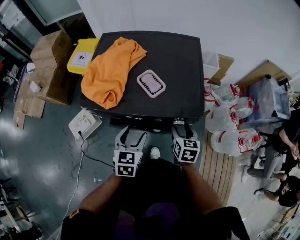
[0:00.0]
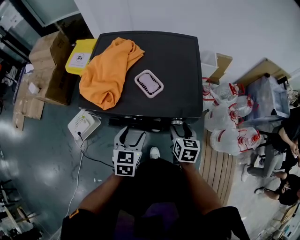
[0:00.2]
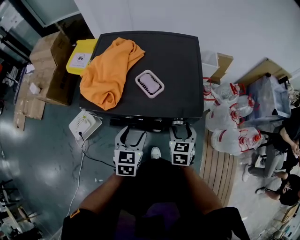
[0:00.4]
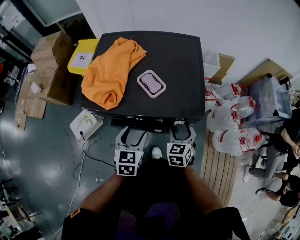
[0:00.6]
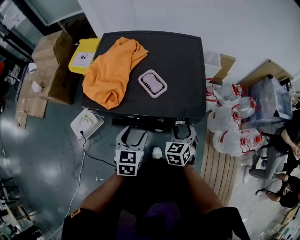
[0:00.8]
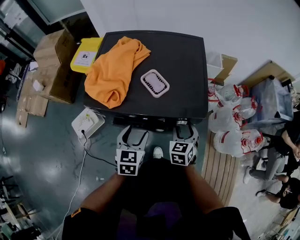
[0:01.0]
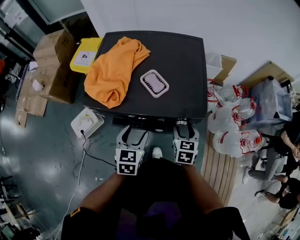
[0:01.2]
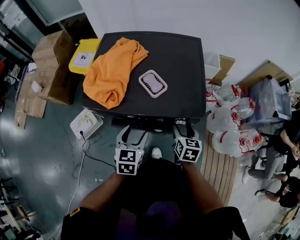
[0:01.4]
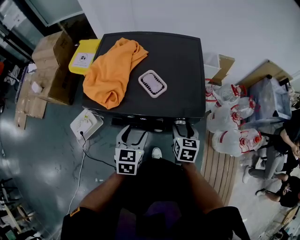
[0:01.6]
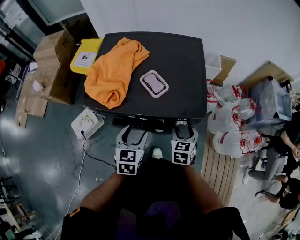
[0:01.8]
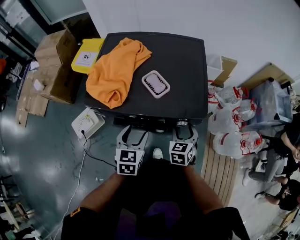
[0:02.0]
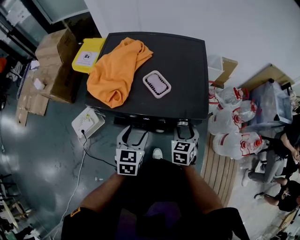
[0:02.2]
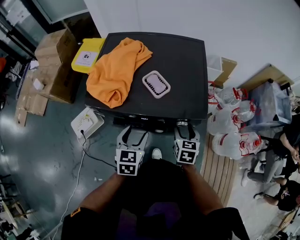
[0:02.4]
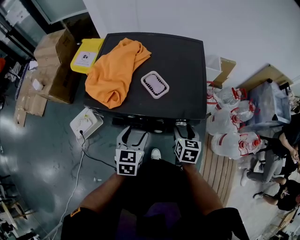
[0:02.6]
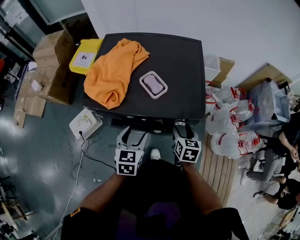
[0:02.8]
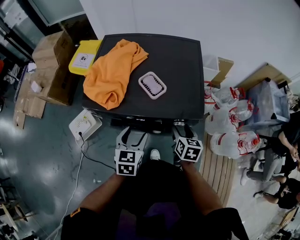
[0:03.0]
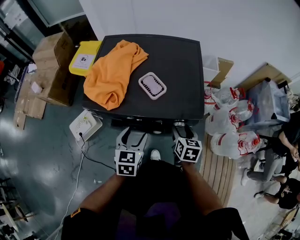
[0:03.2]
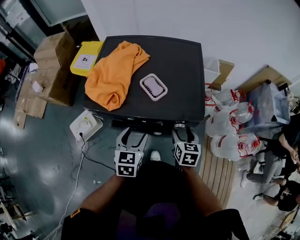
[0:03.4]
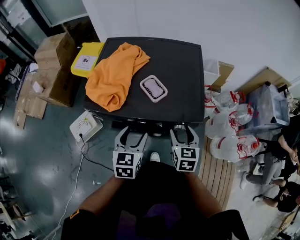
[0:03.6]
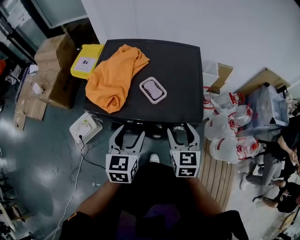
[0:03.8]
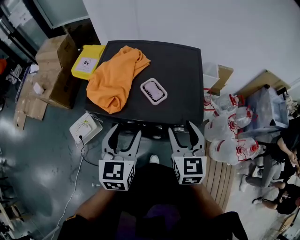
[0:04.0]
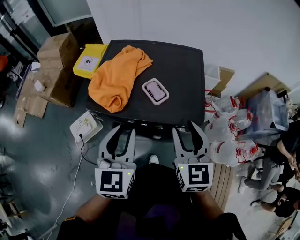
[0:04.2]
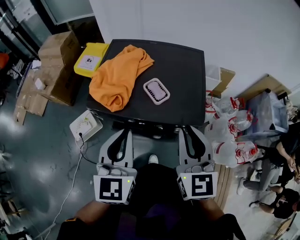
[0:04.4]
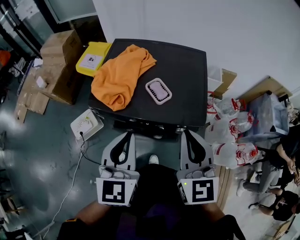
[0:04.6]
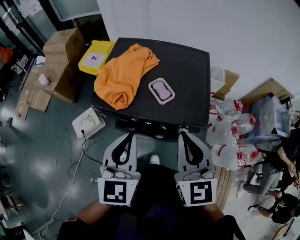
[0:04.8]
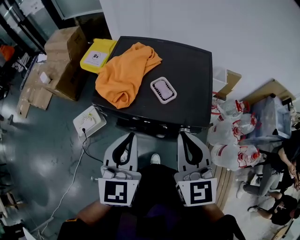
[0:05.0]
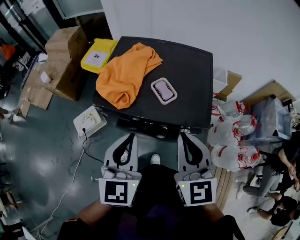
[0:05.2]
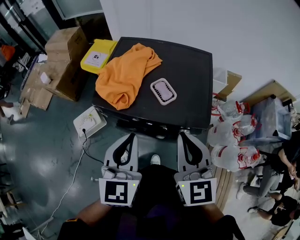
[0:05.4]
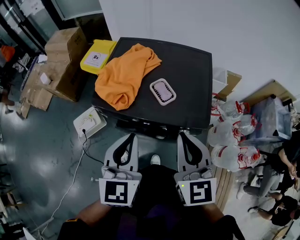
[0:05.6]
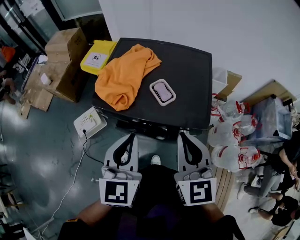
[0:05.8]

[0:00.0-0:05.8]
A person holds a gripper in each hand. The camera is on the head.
0:02.8 to 0:04.4: The grippers both shift upward by some 25 cm. The right gripper changes its angle by approximately 40 degrees, and closes up. The left gripper turns by some 20 degrees, and closes its fingers.
0:04.4 to 0:05.8: There are only small adjustments of the grippers.

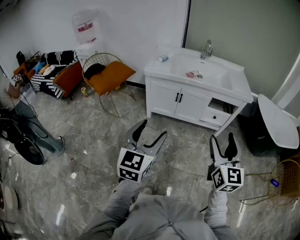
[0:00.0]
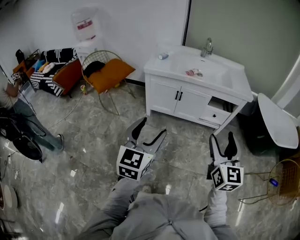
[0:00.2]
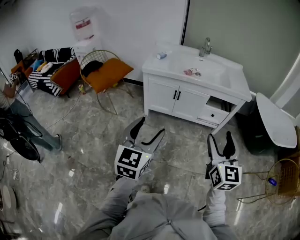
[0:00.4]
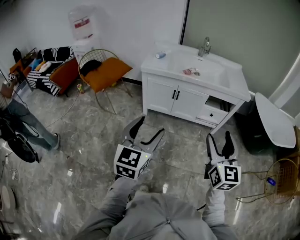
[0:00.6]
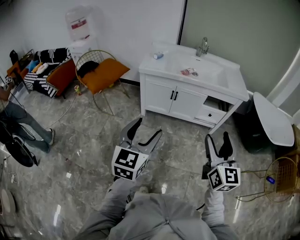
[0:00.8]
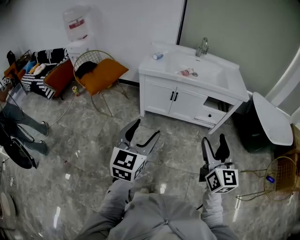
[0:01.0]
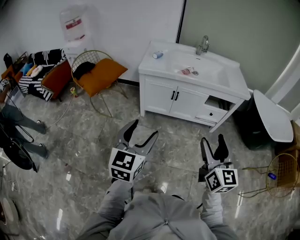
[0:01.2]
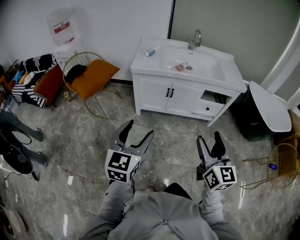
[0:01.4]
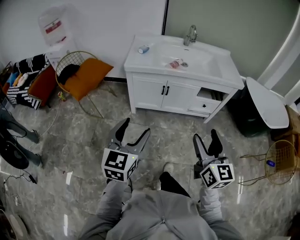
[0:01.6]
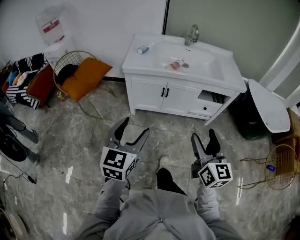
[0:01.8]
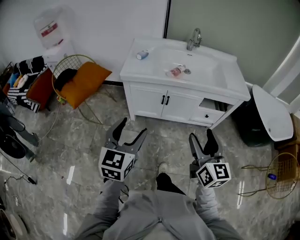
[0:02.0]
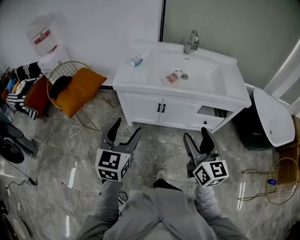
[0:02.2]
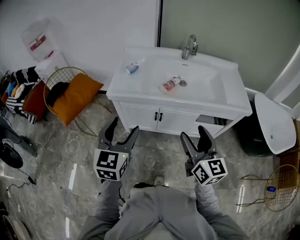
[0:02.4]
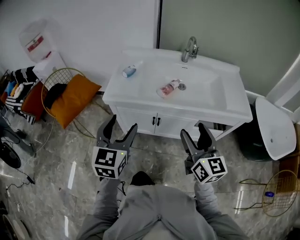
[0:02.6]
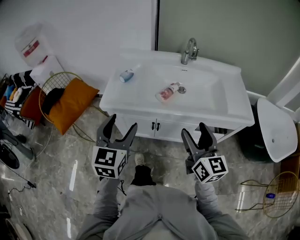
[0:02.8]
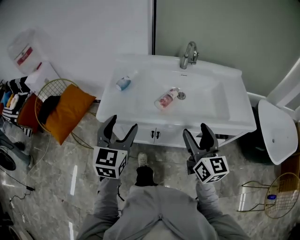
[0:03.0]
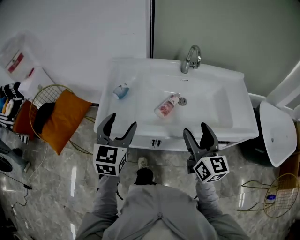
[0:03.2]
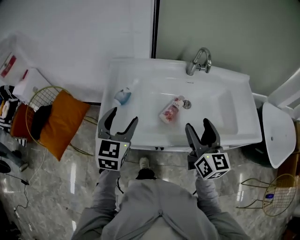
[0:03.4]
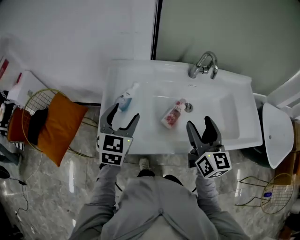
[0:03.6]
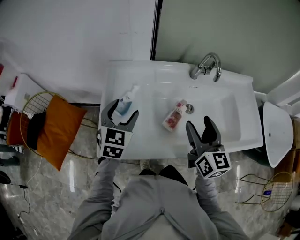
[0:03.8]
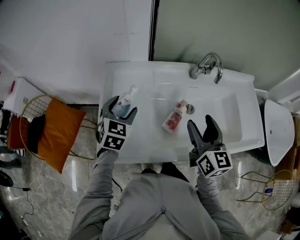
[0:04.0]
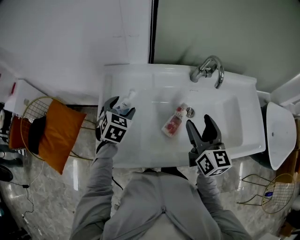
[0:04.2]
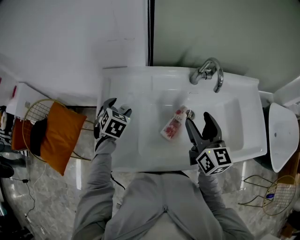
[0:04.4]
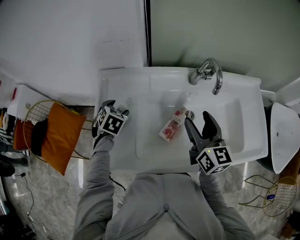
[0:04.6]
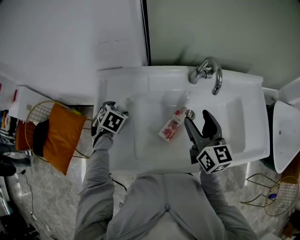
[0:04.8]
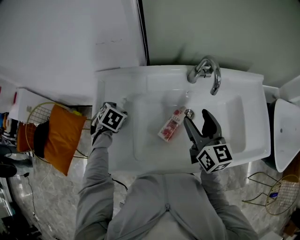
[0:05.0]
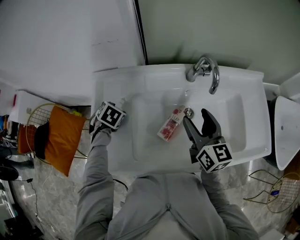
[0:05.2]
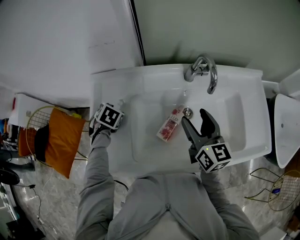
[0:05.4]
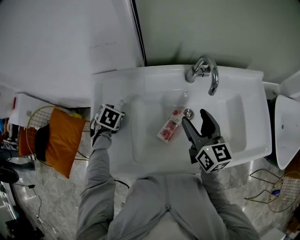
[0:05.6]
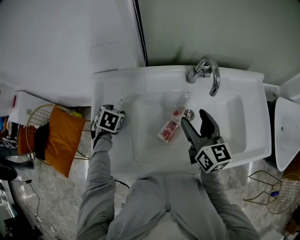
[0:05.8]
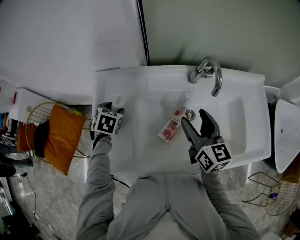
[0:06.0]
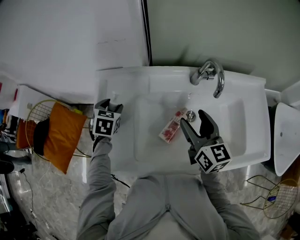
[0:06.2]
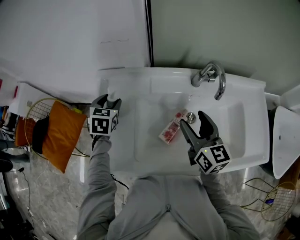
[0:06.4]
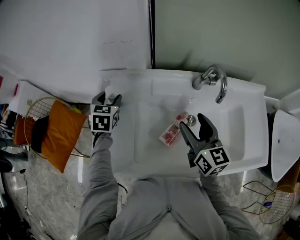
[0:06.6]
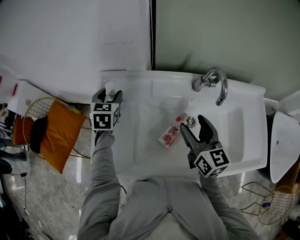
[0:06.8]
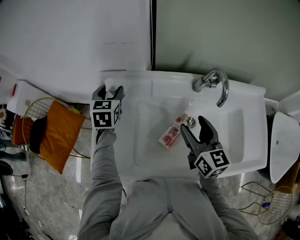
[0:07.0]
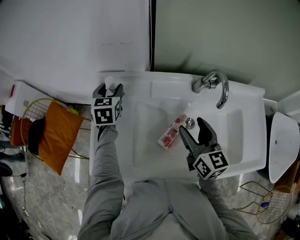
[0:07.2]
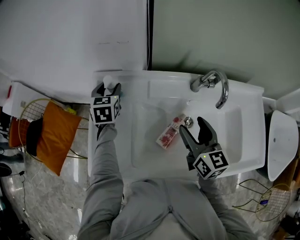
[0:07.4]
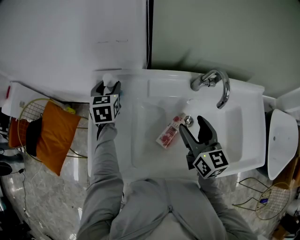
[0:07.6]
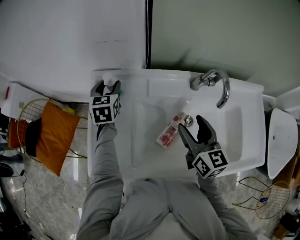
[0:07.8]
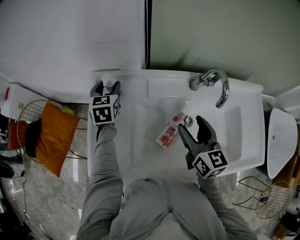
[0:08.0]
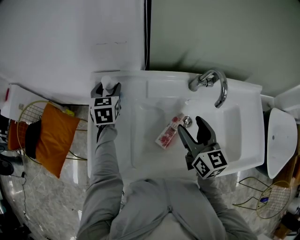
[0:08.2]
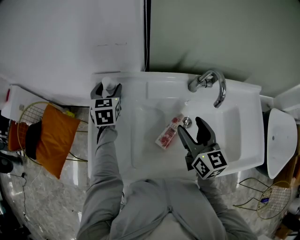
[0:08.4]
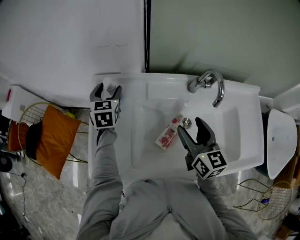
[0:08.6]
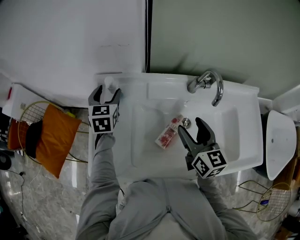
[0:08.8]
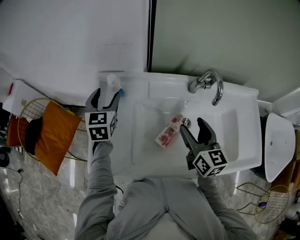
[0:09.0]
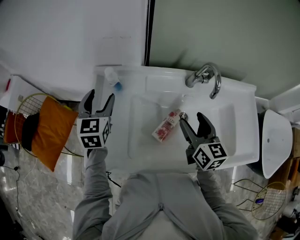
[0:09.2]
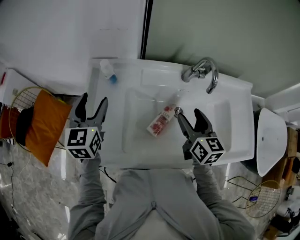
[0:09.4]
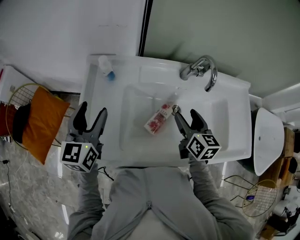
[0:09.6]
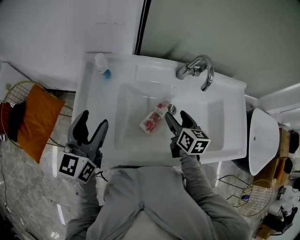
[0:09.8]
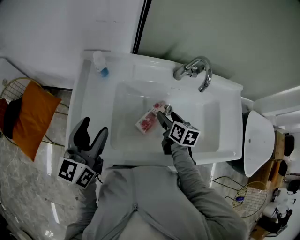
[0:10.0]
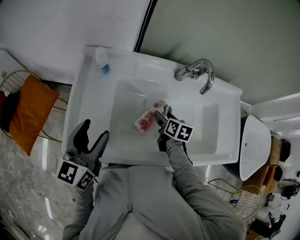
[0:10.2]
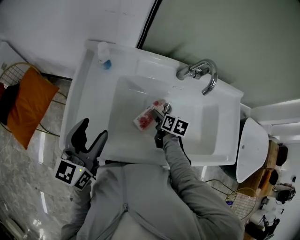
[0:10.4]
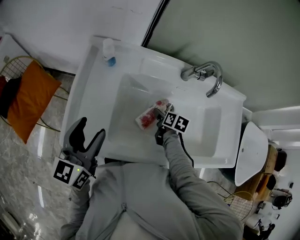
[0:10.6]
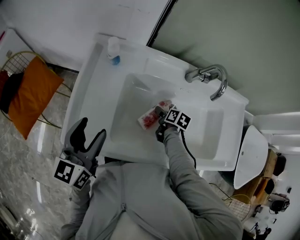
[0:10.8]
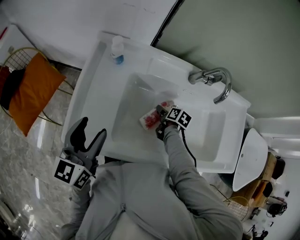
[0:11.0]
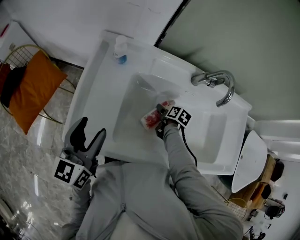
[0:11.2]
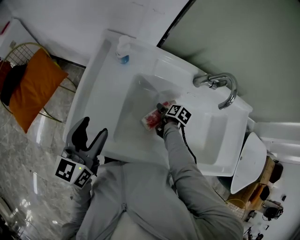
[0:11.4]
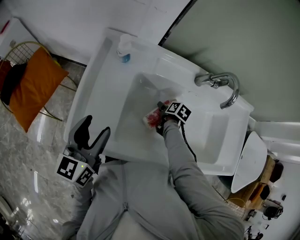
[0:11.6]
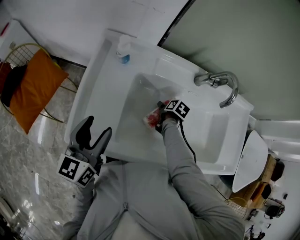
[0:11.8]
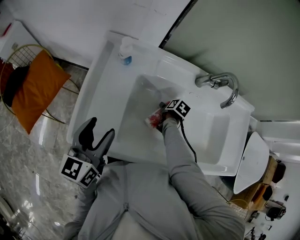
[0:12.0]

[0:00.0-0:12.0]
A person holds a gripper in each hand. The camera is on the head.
0:00.0 to 0:01.6: The right gripper goes about 10 cm to the left and forward. Meanwhile the left gripper shifts approximately 10 cm forward and to the left.
0:01.6 to 0:03.0: The pair of grippers is taken forward, approximately 40 cm.
0:03.0 to 0:04.4: The right gripper shifts approximately 30 cm forward, while the left gripper travels forward and downward by some 40 cm, and points its fingers some 40 degrees further downward.
0:04.4 to 0:06.0: The grippers make only small movements.
0:06.0 to 0:07.6: The left gripper goes roughly 15 cm forward and upward, and turns by approximately 30 degrees.
0:07.6 to 0:09.0: The left gripper heads backward, covering approximately 5 cm.
0:09.0 to 0:10.4: The right gripper heads downward, covering about 20 cm, and angles its fingers downward, by approximately 40 degrees; the left gripper is displaced backward by approximately 20 cm, and swivels roughly 30 degrees.
0:10.4 to 0:12.0: The right gripper heads downward, covering roughly 10 cm, and changes its angle by some 20 degrees.

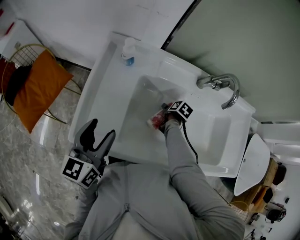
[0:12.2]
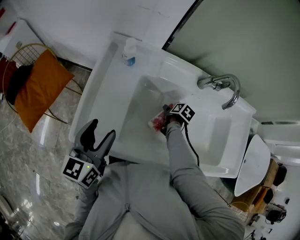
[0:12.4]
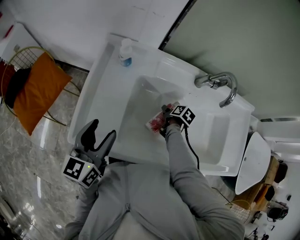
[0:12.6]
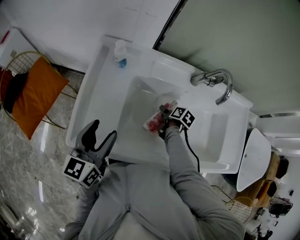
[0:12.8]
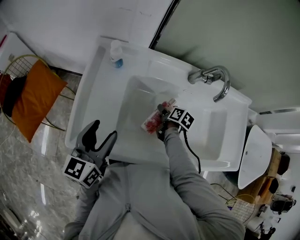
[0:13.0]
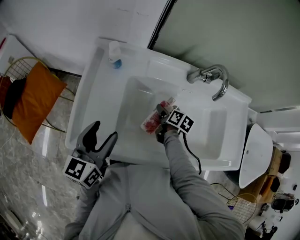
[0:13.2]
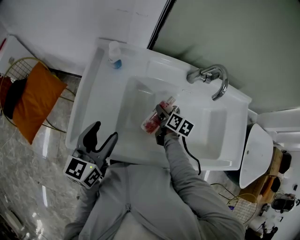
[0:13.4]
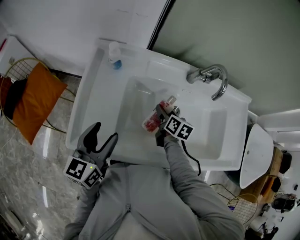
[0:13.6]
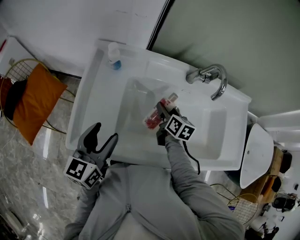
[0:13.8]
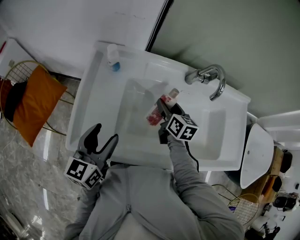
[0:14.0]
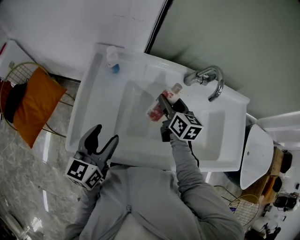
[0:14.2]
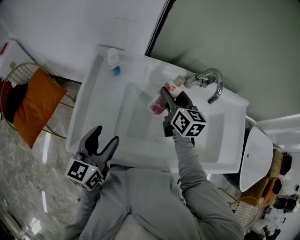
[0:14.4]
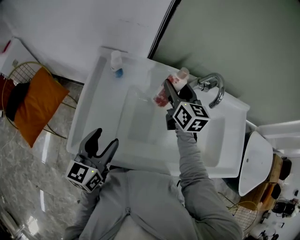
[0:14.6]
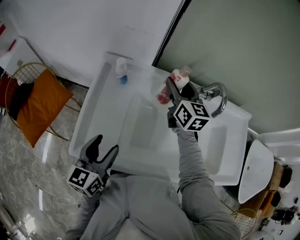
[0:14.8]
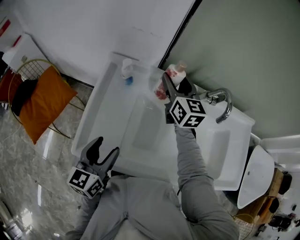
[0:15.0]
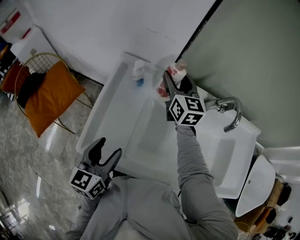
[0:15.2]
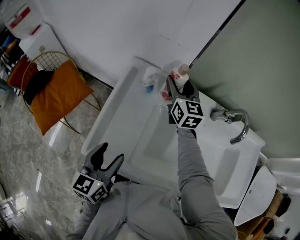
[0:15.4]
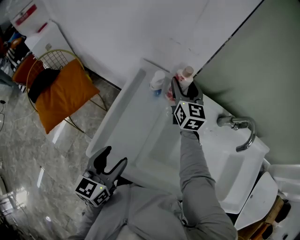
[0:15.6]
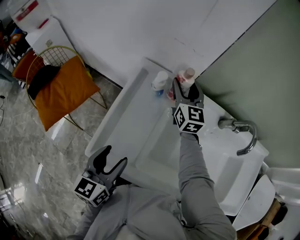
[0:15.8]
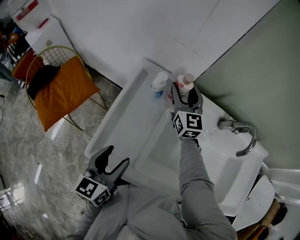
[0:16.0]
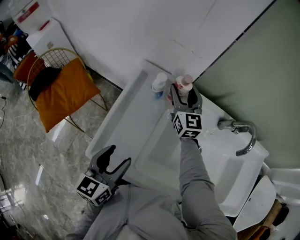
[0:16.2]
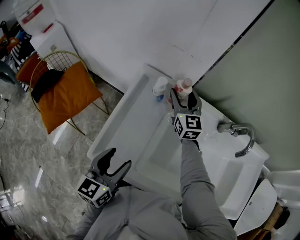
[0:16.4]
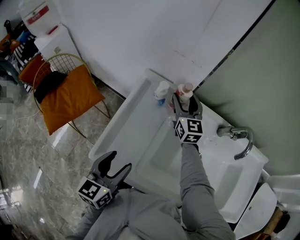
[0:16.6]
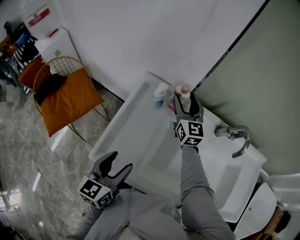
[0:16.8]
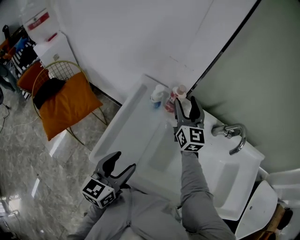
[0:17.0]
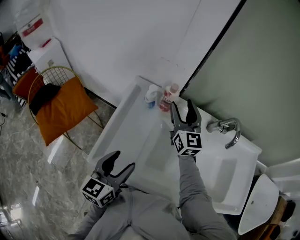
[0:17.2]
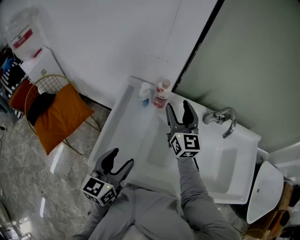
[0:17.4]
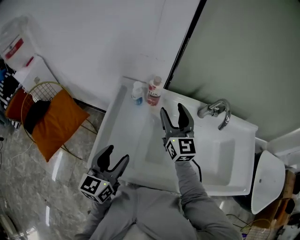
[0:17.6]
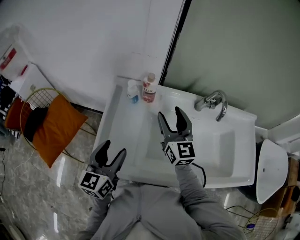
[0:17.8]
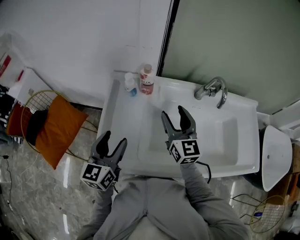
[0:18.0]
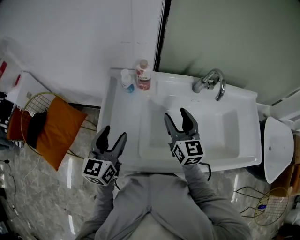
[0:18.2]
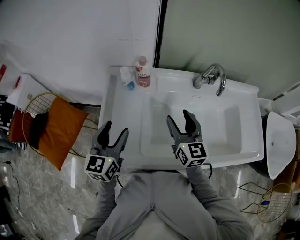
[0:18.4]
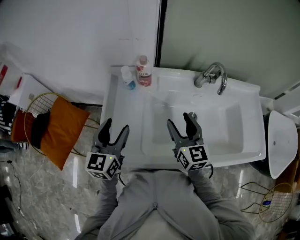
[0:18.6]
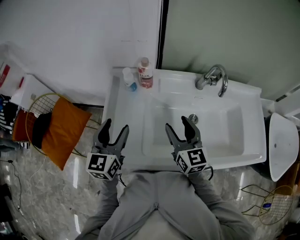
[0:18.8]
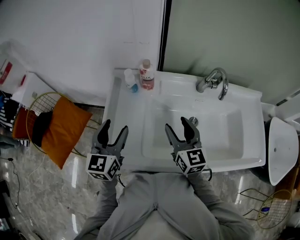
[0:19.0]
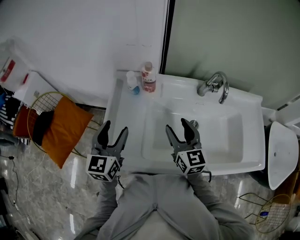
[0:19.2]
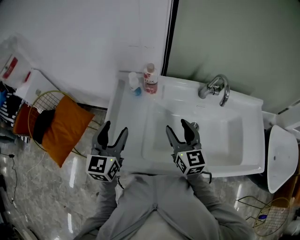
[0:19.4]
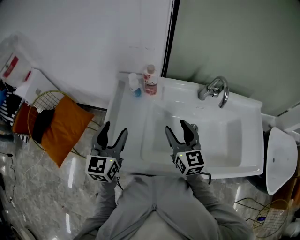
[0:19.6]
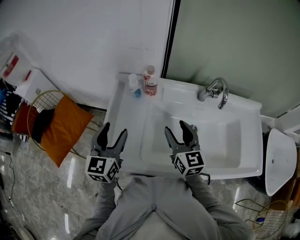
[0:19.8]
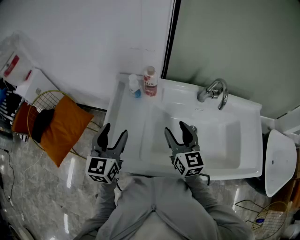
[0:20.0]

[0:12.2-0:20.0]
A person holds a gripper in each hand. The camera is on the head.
0:12.2 to 0:13.8: The right gripper moves upward, roughly 15 cm, and points its fingers about 40 degrees further upward.
0:13.8 to 0:15.4: The left gripper shifts roughly 5 cm to the left, while the right gripper shifts roughly 30 cm forward, upward and to the left, and turns by roughly 40 degrees.
0:15.4 to 0:16.8: The grippers stay close to where they were, moving slightly.
0:16.8 to 0:18.4: The left gripper heads forward, covering about 5 cm. Meanwhile the right gripper travels backward and to the right by about 25 cm.
0:18.4 to 0:20.0: The grippers stay close to where they were, moving slightly.
